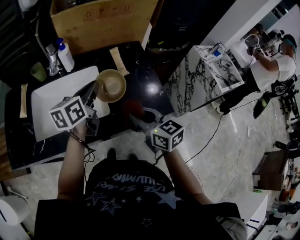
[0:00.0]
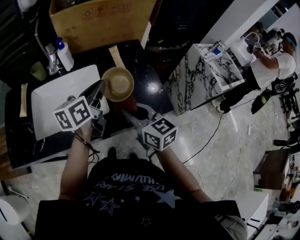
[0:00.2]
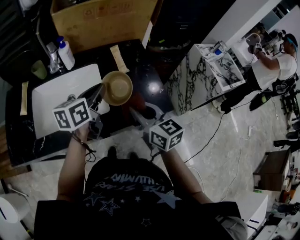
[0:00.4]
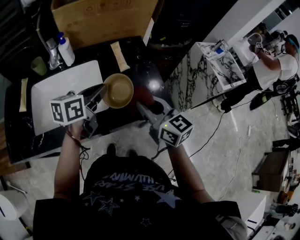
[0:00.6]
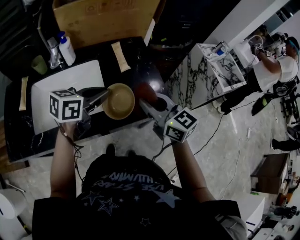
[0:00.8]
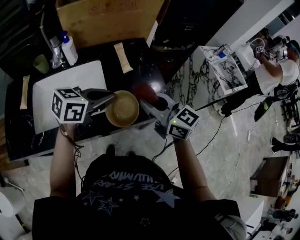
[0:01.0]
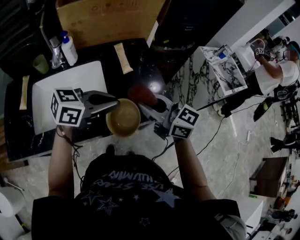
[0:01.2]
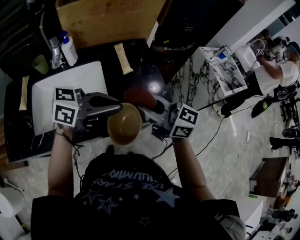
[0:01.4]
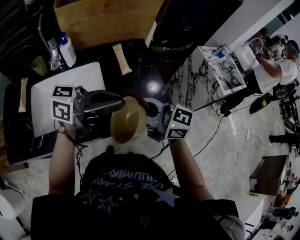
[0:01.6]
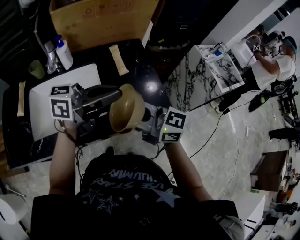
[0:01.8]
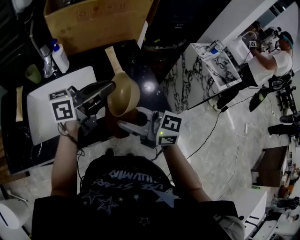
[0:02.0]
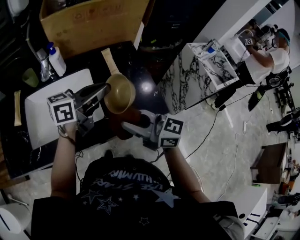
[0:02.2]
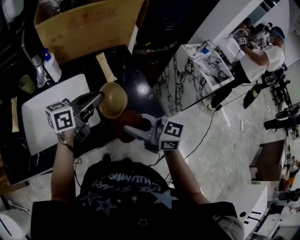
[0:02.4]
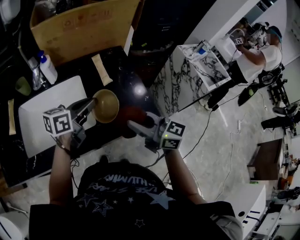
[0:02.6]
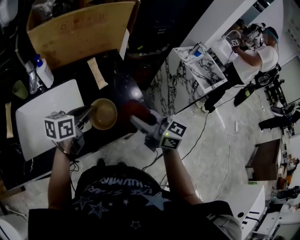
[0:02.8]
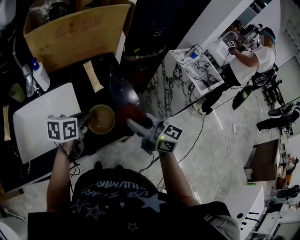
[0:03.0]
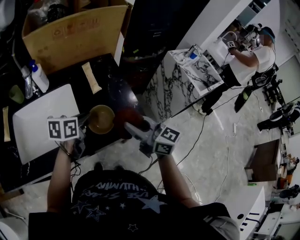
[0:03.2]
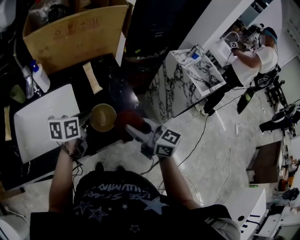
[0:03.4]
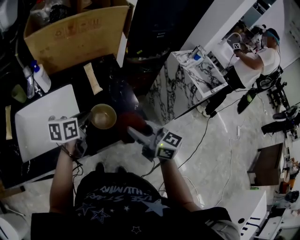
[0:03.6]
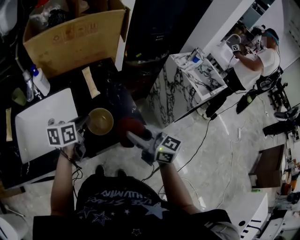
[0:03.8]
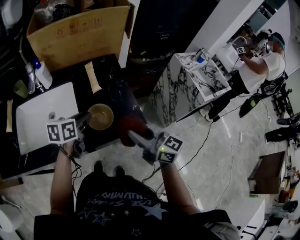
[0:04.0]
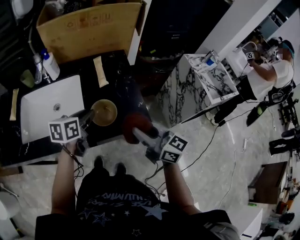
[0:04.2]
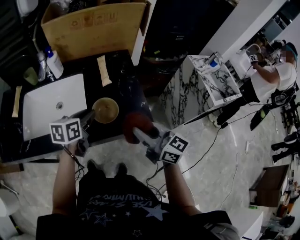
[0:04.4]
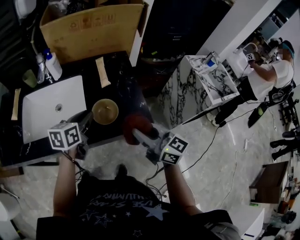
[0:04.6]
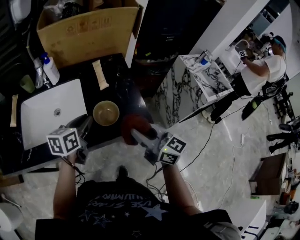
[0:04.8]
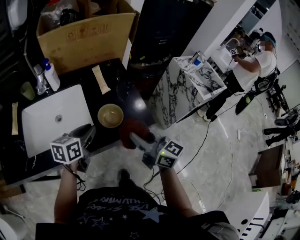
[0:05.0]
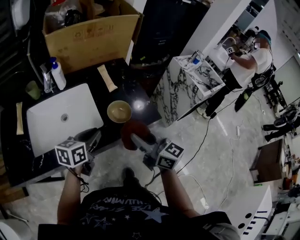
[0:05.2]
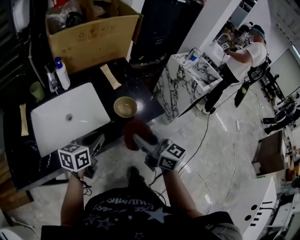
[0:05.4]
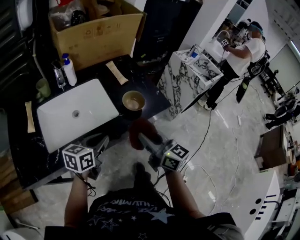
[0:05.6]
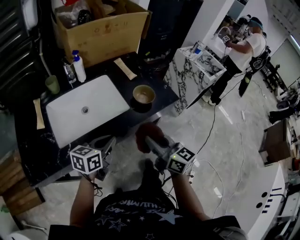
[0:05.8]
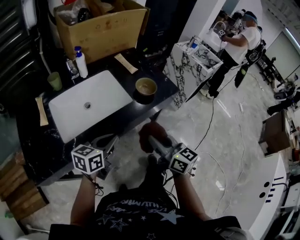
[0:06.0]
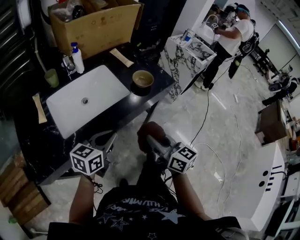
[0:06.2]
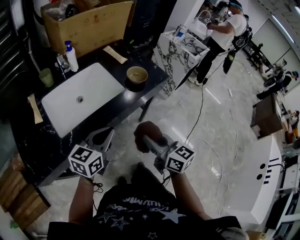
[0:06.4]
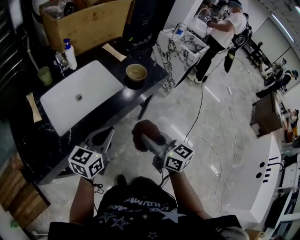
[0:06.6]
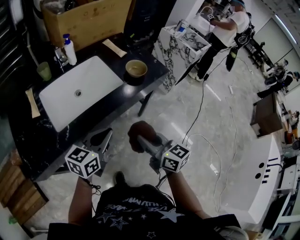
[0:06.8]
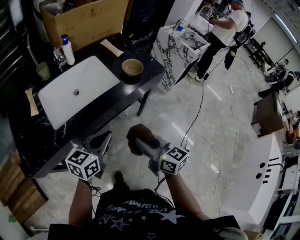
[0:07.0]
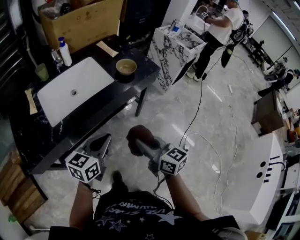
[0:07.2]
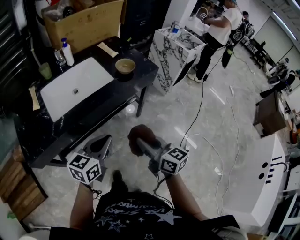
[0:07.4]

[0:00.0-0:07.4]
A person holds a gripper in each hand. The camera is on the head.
0:00.0 to 0:01.4: The right gripper heads upward, covering some 10 cm, and changes its angle by roughly 30 degrees; the left gripper changes place by about 15 cm, and swivels some 60 degrees.
0:01.4 to 0:03.0: The right gripper shifts by about 10 cm. Meanwhile the left gripper is displaced downward by approximately 10 cm, and swivels approximately 40 degrees.
0:03.0 to 0:04.4: The right gripper ends up about 5 cm from where it was.
0:04.4 to 0:06.0: The right gripper ends up approximately 30 cm from where it was, and rotates about 30 degrees. The left gripper moves about 30 cm, and turns by about 30 degrees.
0:06.0 to 0:07.4: The right gripper is displaced backward by about 15 cm; the left gripper travels backward and to the right by roughly 15 cm.

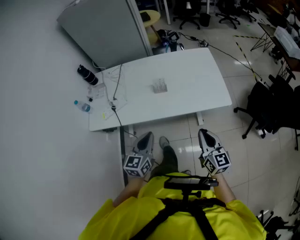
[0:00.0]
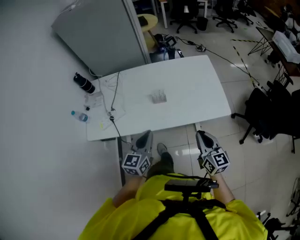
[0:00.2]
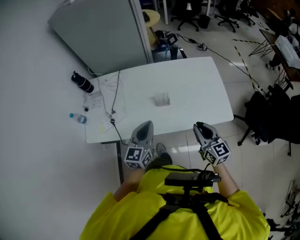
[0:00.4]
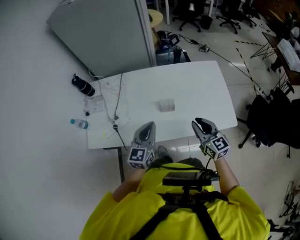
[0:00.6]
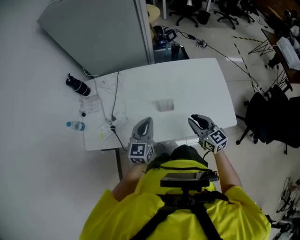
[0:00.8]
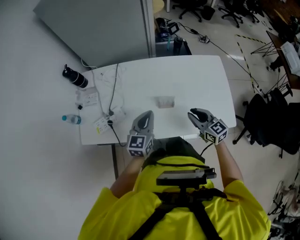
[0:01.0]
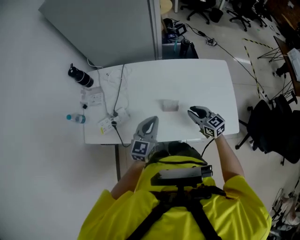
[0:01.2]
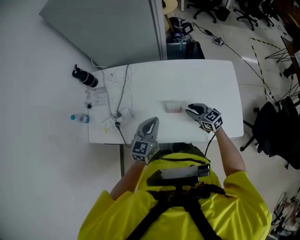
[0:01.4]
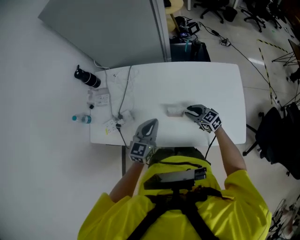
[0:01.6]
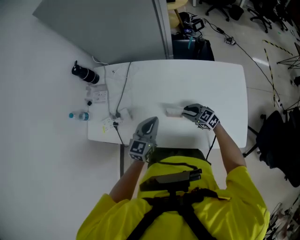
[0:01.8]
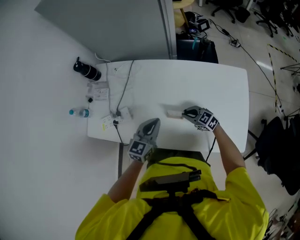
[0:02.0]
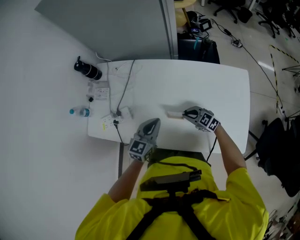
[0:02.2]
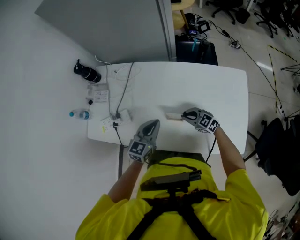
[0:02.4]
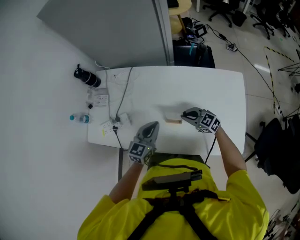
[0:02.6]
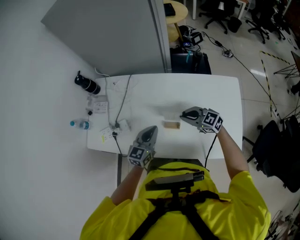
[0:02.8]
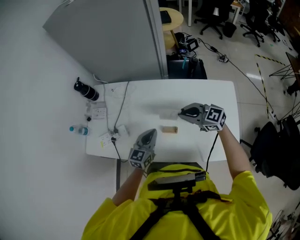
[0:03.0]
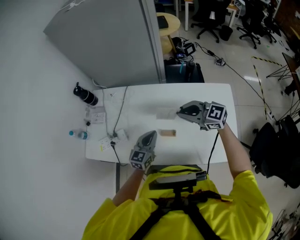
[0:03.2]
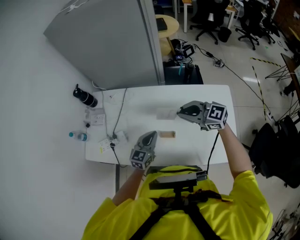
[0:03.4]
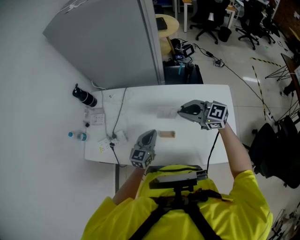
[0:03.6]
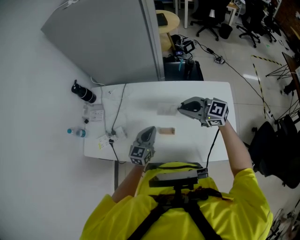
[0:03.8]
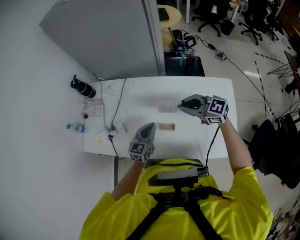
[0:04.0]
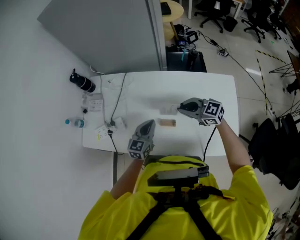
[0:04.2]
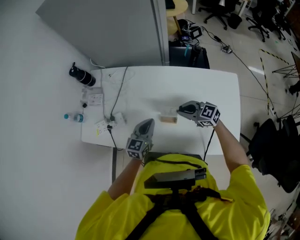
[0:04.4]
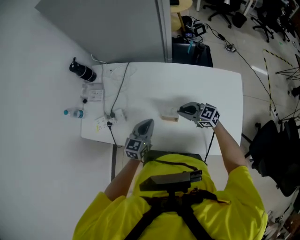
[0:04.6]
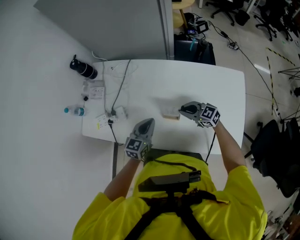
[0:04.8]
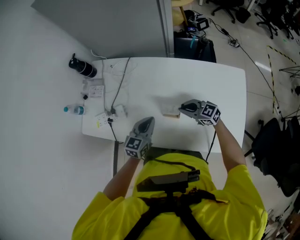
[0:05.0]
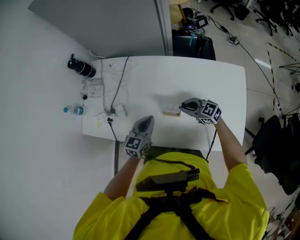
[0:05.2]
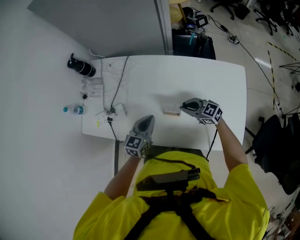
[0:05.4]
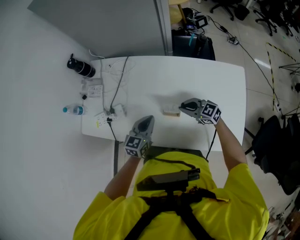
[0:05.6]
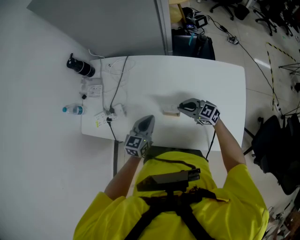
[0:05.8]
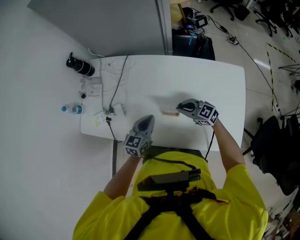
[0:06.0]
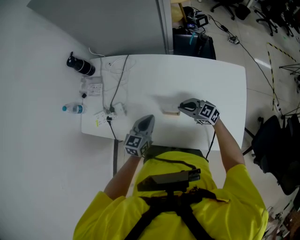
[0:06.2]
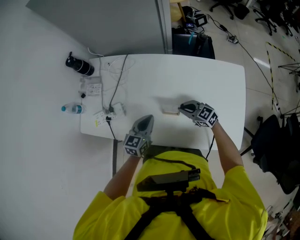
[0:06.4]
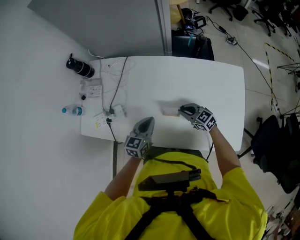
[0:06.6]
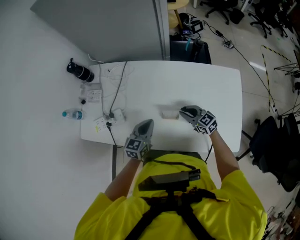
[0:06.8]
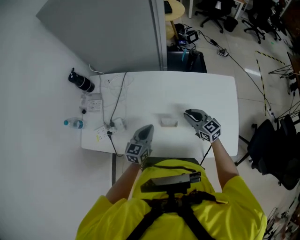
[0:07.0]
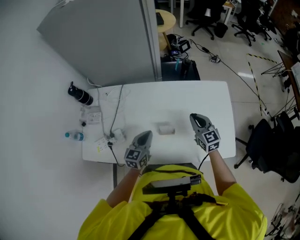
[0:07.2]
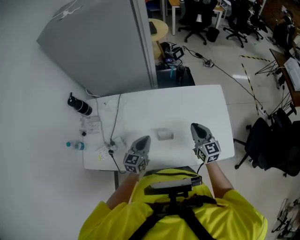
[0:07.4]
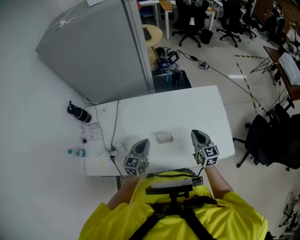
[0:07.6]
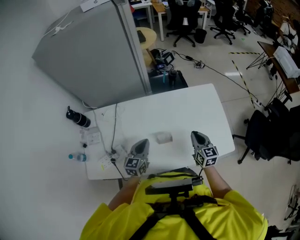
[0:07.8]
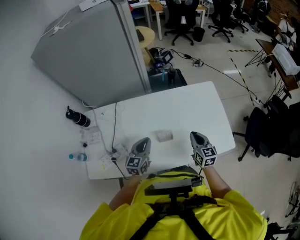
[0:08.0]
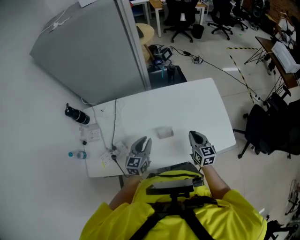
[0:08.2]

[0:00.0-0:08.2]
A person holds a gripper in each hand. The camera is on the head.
0:00.0 to 0:01.6: The right gripper changes place by about 40 cm, changes its angle by some 50 degrees, and opens. The left gripper ends up roughly 30 cm from where it was.
0:01.6 to 0:03.2: The right gripper shifts about 20 cm upward, turns by approximately 30 degrees, and closes. The left gripper shifts by roughly 5 cm.
0:03.2 to 0:05.0: The right gripper goes some 20 cm downward.
0:05.0 to 0:06.6: The grippers move only a little.
0:06.6 to 0:08.2: The right gripper travels upward by approximately 15 cm, and rotates approximately 60 degrees; the left gripper travels upward by some 5 cm.

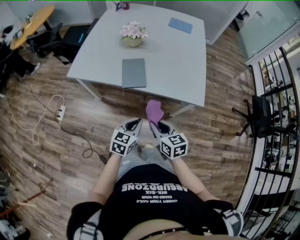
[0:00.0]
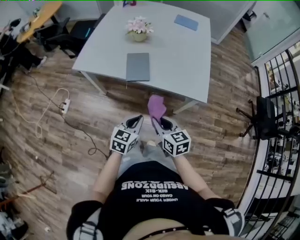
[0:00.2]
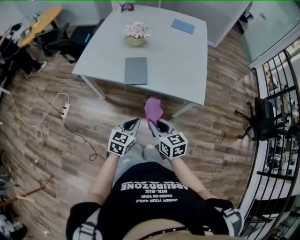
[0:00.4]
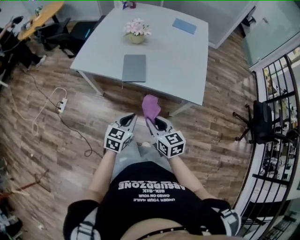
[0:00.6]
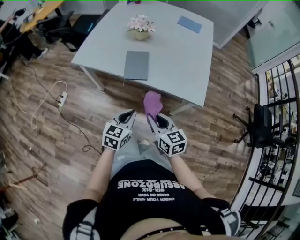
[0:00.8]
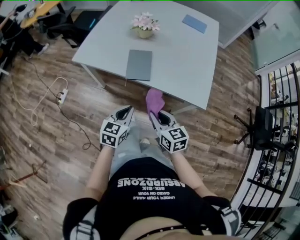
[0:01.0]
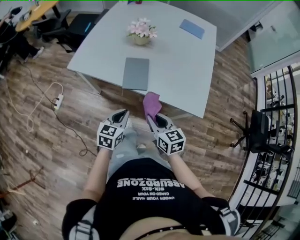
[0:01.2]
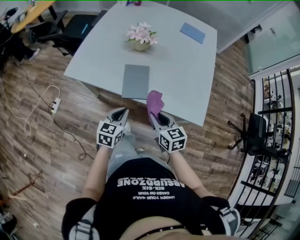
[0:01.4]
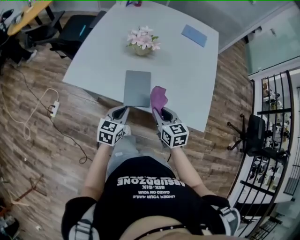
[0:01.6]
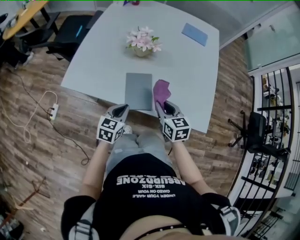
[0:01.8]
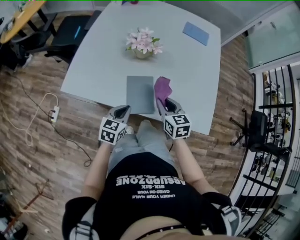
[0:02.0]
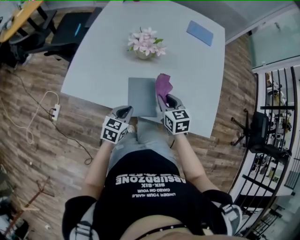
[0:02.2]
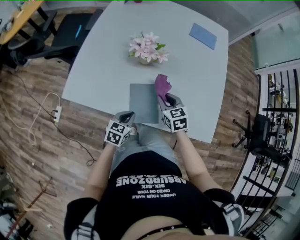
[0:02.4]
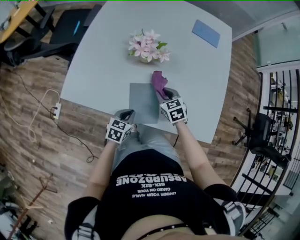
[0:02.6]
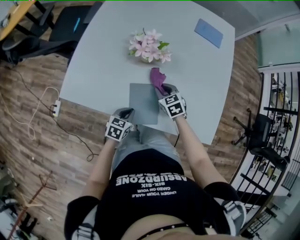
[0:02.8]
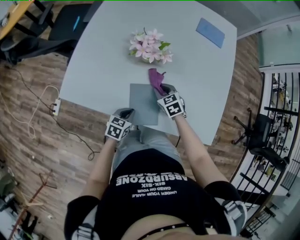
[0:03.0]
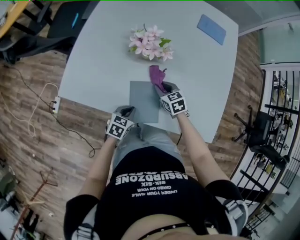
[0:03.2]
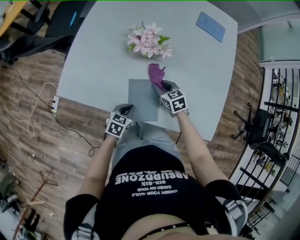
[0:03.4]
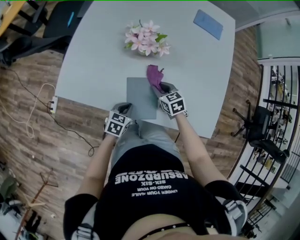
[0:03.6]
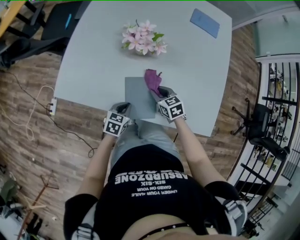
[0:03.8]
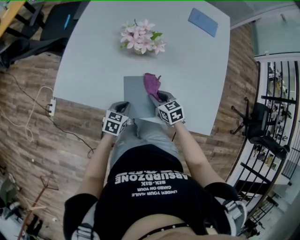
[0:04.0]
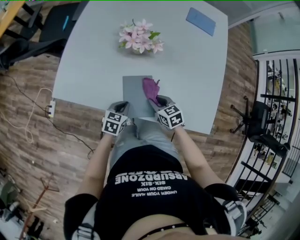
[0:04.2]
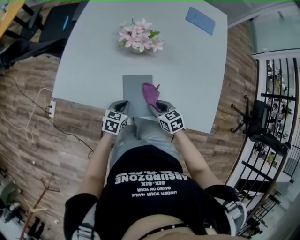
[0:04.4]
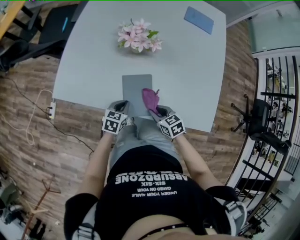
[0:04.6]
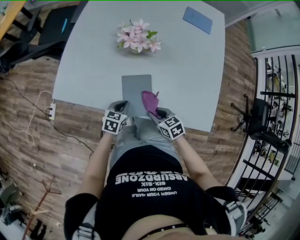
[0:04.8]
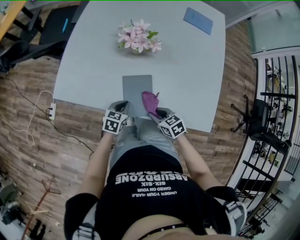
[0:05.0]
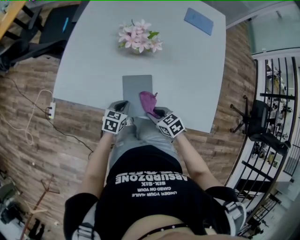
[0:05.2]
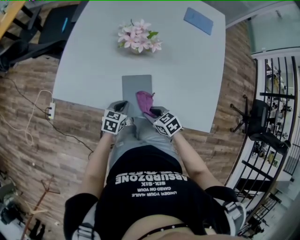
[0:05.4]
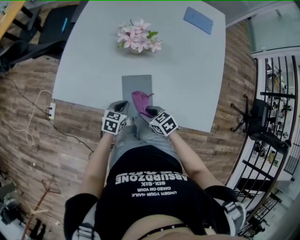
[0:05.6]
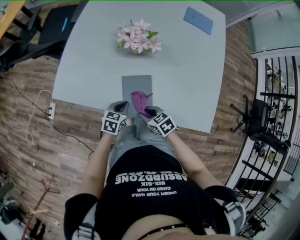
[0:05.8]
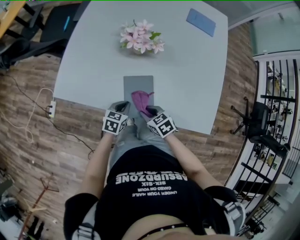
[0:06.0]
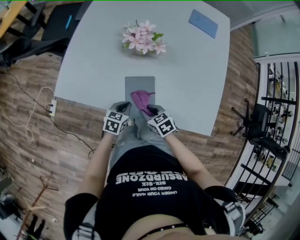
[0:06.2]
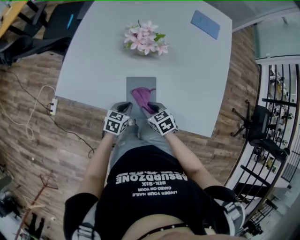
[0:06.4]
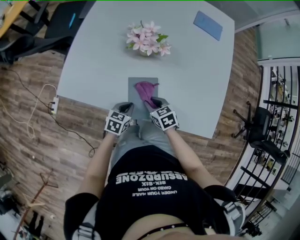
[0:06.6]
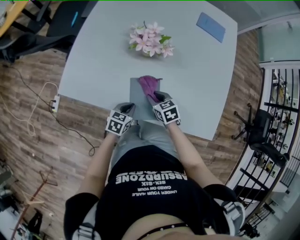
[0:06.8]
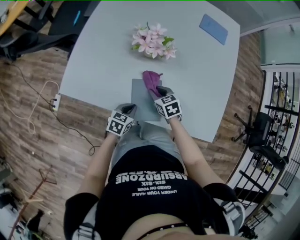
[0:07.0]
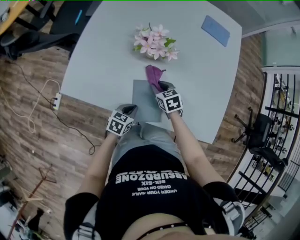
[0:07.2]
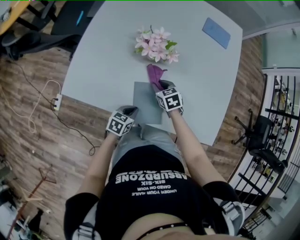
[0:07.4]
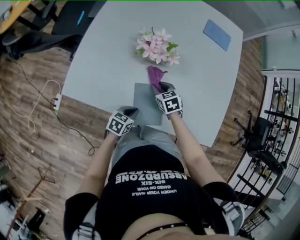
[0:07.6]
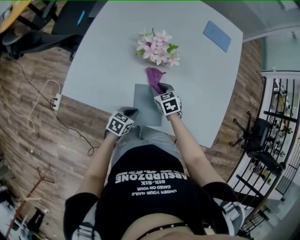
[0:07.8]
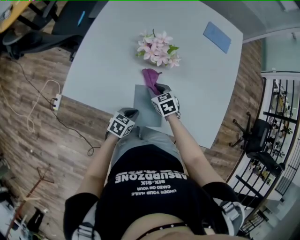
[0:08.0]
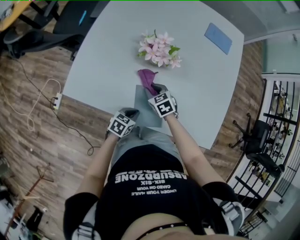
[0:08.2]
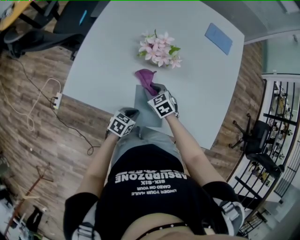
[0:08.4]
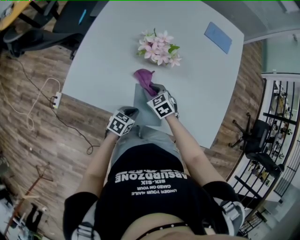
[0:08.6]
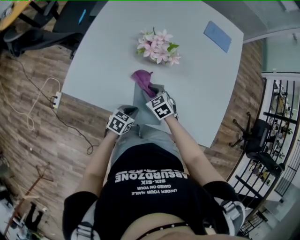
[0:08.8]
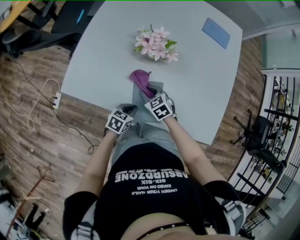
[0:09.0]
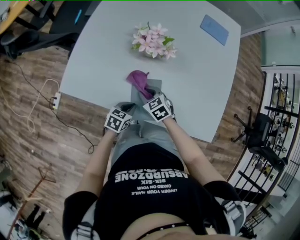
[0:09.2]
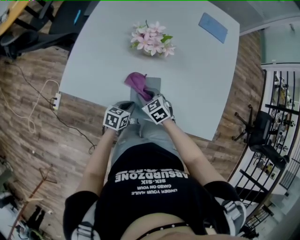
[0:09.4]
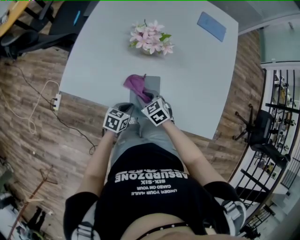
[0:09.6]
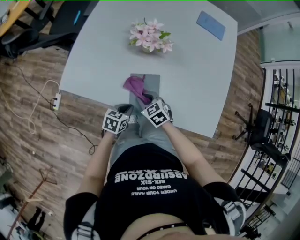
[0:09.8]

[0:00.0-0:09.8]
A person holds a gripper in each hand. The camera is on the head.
0:00.0 to 0:01.4: Both grippers move forward, some 15 cm.
0:01.4 to 0:02.8: The left gripper travels forward and downward by some 20 cm, and swivels about 20 degrees; the right gripper is displaced forward and downward by roughly 30 cm, and swivels about 30 degrees.
0:02.8 to 0:04.2: The right gripper heads backward, covering approximately 10 cm.
0:04.2 to 0:05.6: The right gripper is displaced backward and to the left by approximately 10 cm.
0:05.6 to 0:07.0: The right gripper goes approximately 15 cm forward.
0:07.0 to 0:08.4: The right gripper is displaced to the left by approximately 5 cm.
0:08.4 to 0:09.8: The right gripper goes roughly 10 cm backward.
